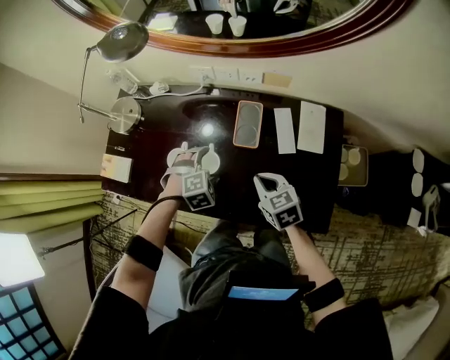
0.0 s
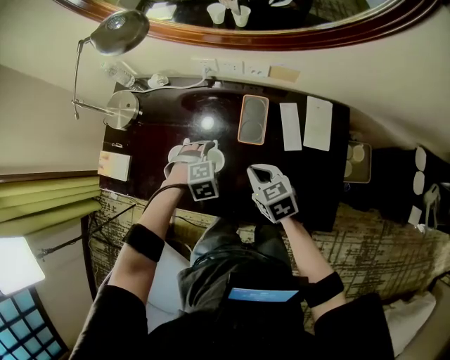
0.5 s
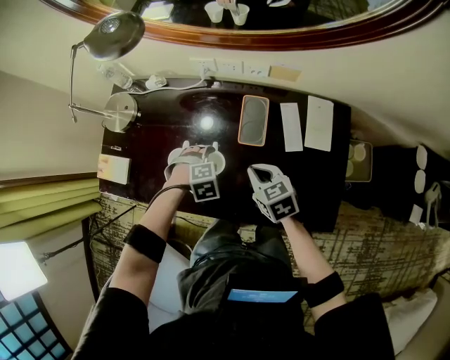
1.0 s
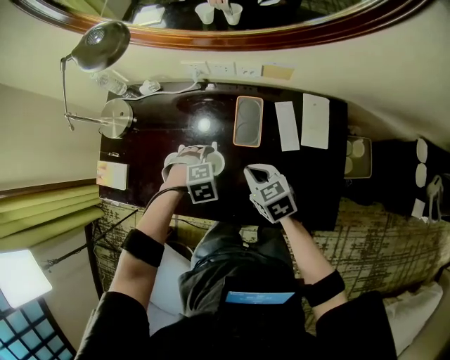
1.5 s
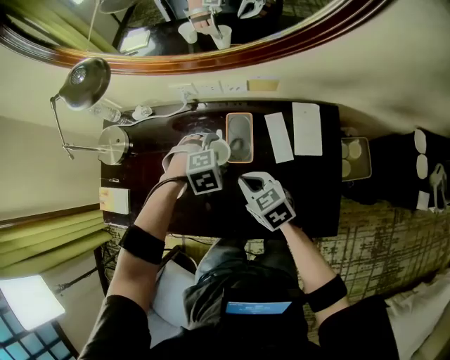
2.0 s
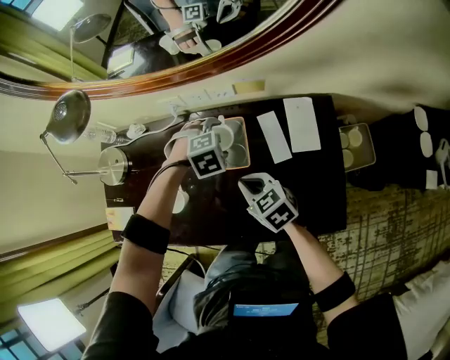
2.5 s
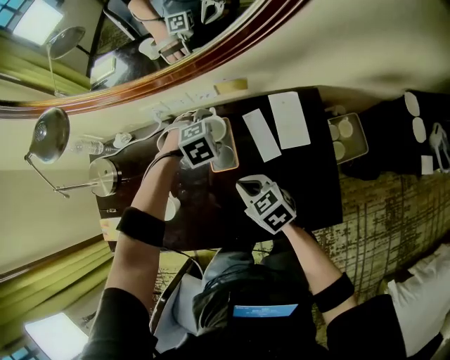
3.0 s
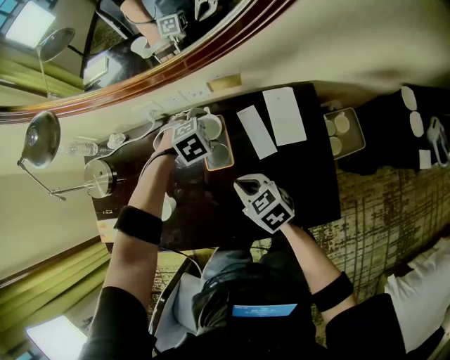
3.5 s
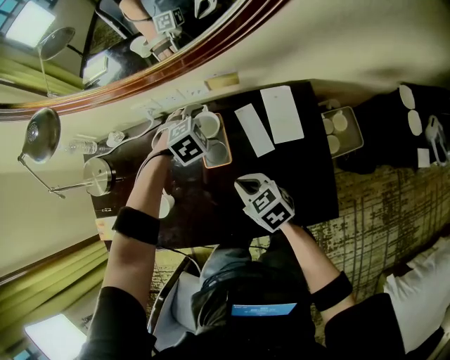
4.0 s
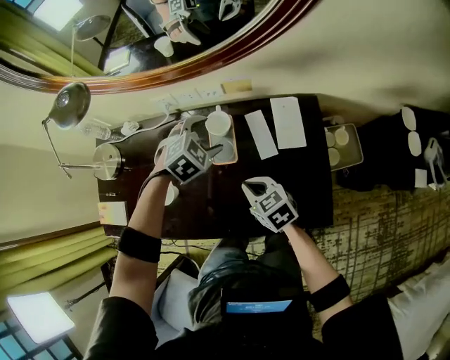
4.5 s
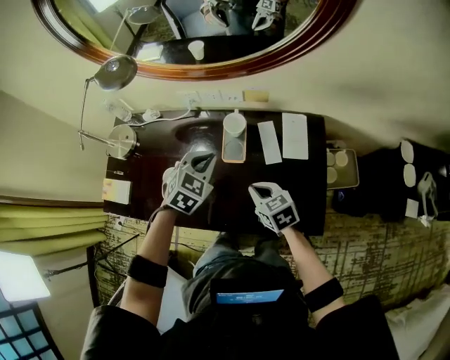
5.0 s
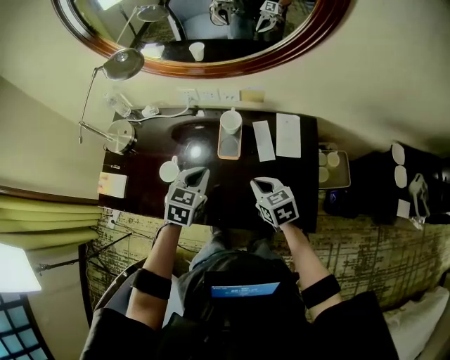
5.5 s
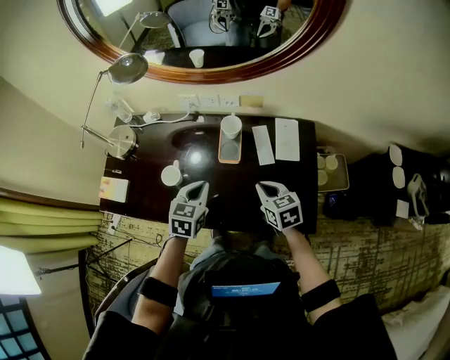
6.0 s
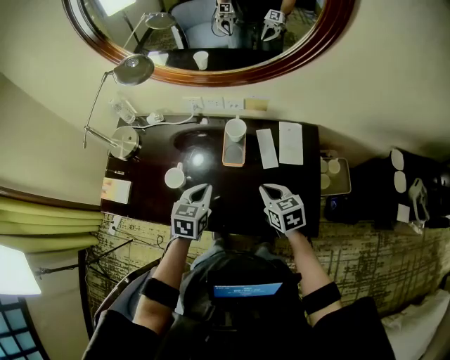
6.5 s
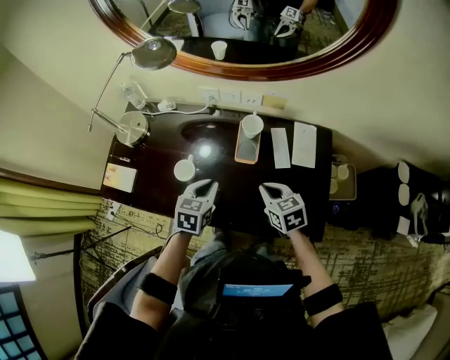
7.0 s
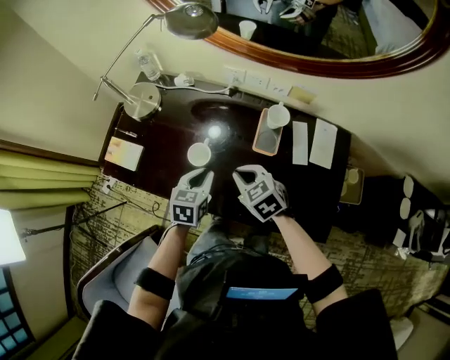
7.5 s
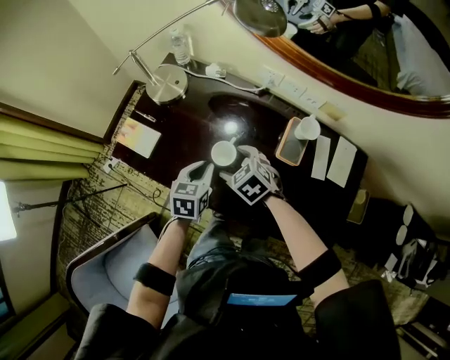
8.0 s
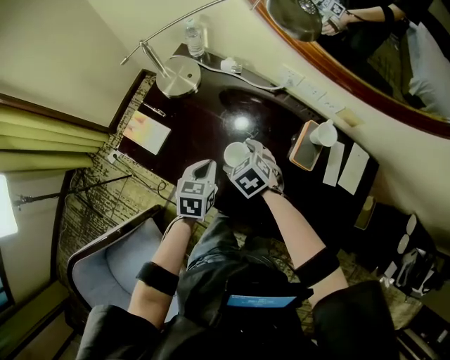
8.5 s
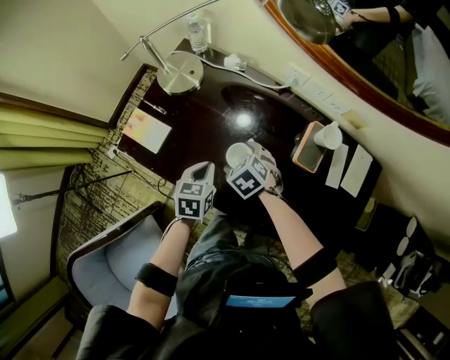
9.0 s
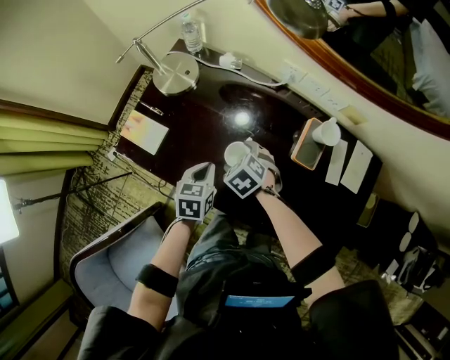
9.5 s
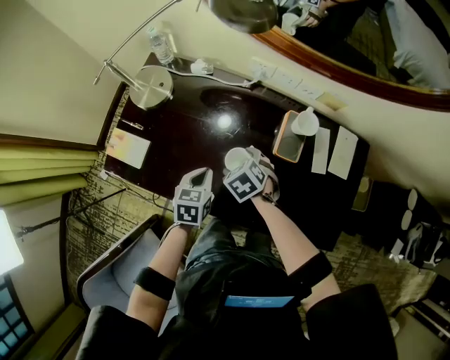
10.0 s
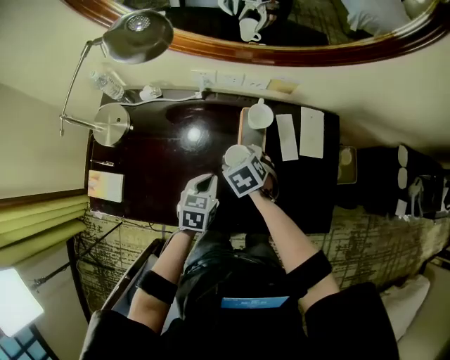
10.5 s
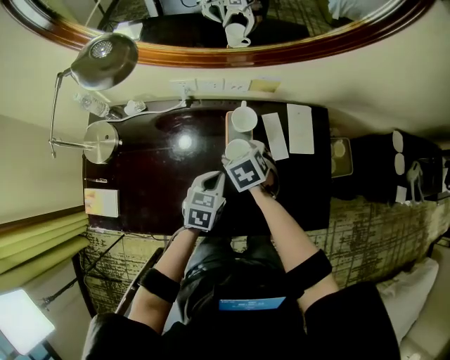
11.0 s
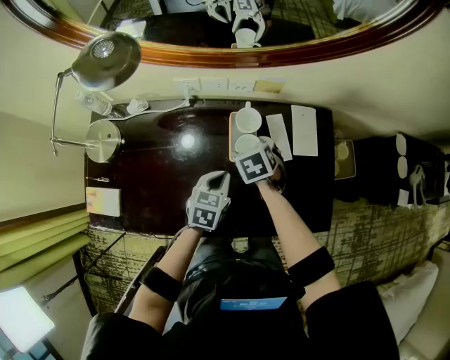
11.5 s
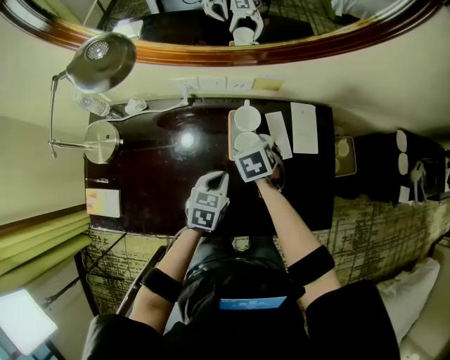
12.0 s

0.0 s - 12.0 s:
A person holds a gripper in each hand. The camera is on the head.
0.0 s - 2.0 s: The right gripper moves some 5 cm. Meanwhile the left gripper shifts by roughly 10 cm.
2.0 s - 4.0 s: The right gripper shifts by some 5 cm, while the left gripper shifts by roughly 15 cm.
4.0 s - 6.0 s: The left gripper heads backward, upward and to the left, covering roughly 30 cm, rolls counterclockwise, seen from behind, by approximately 50 degrees, and closes its fingers, while the right gripper goes roughly 10 cm upward and backward.
6.0 s - 8.0 s: The right gripper goes about 30 cm to the left, turns by roughly 50 degrees, and opens; the left gripper travels to the left and downward by some 25 cm, and turns by some 30 degrees.
8.0 s - 10.0 s: The right gripper is displaced downward by about 5 cm.
10.0 s - 12.0 s: The right gripper changes place by roughly 25 cm, and swivels approximately 40 degrees; the left gripper moves approximately 20 cm, and changes its angle by about 30 degrees.

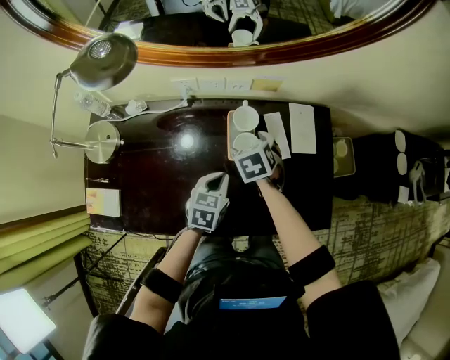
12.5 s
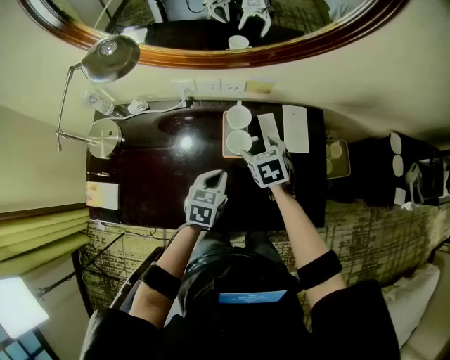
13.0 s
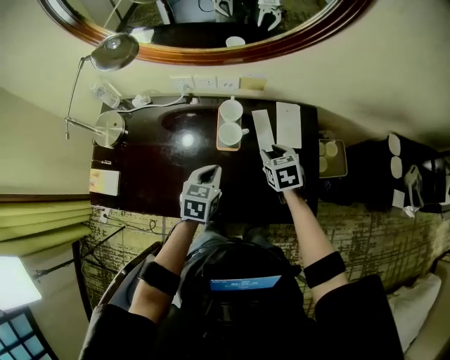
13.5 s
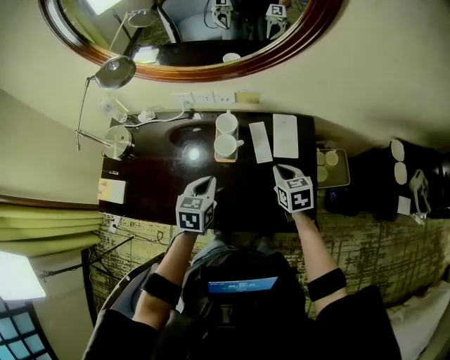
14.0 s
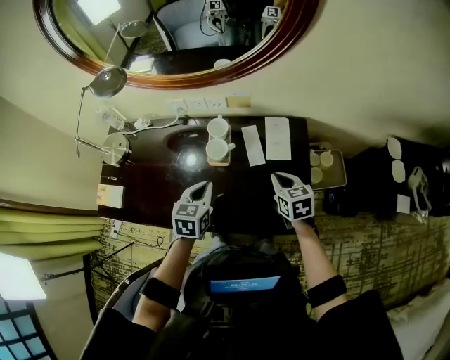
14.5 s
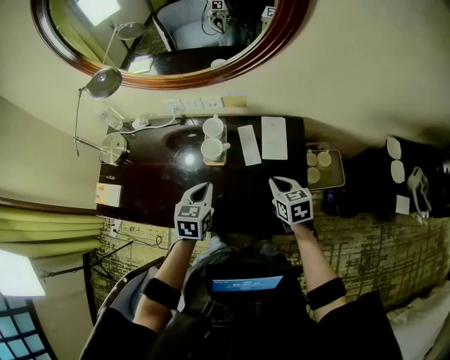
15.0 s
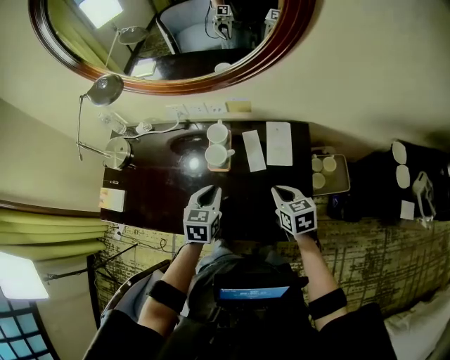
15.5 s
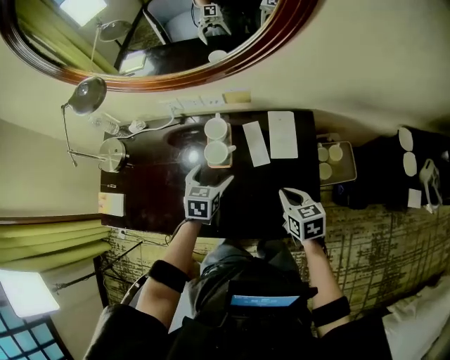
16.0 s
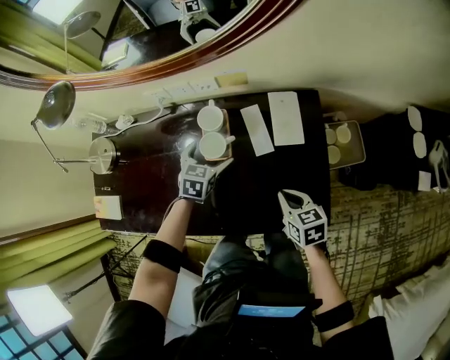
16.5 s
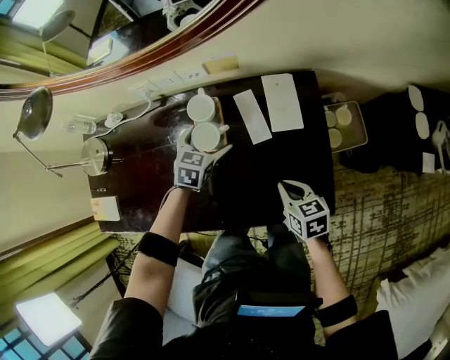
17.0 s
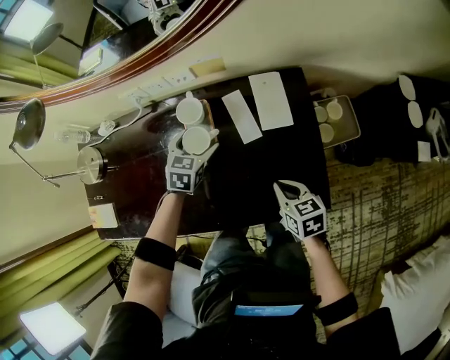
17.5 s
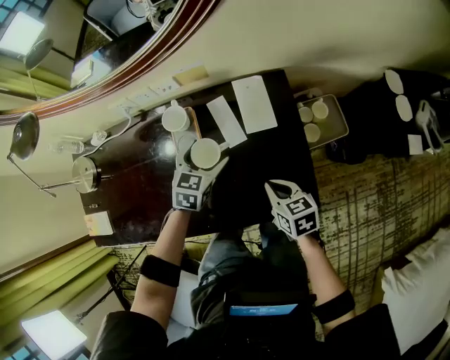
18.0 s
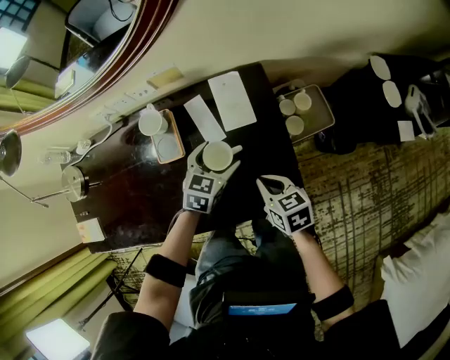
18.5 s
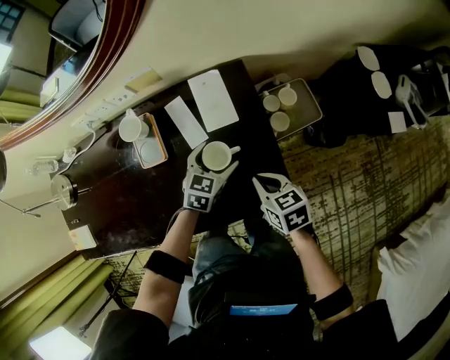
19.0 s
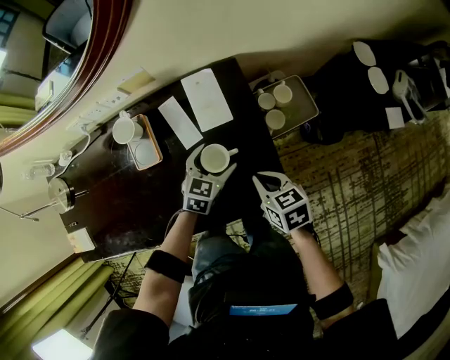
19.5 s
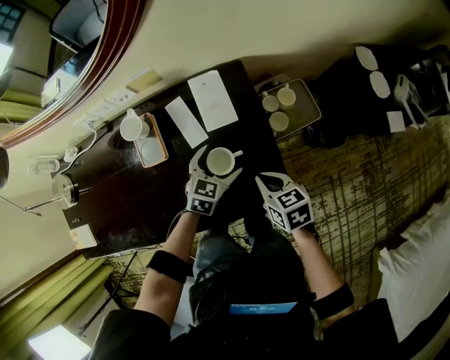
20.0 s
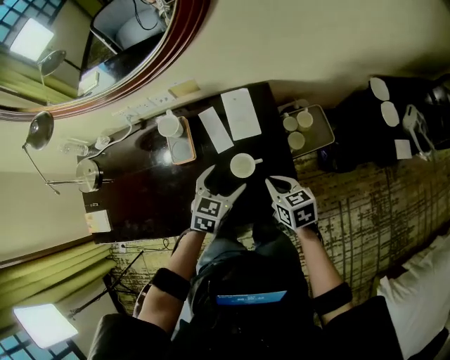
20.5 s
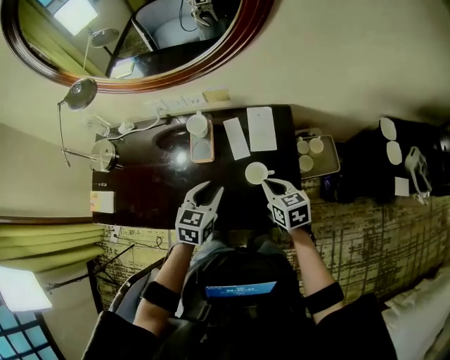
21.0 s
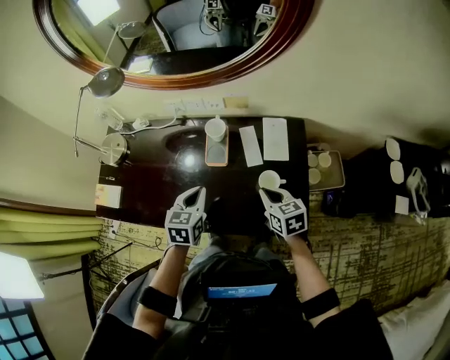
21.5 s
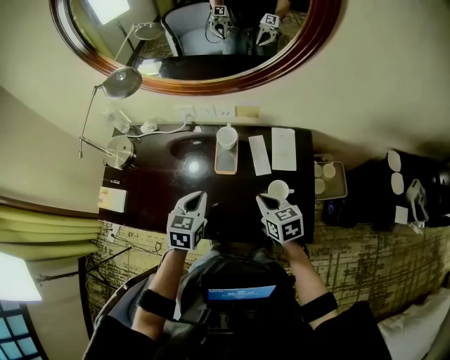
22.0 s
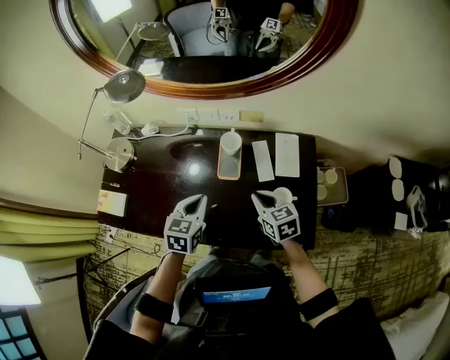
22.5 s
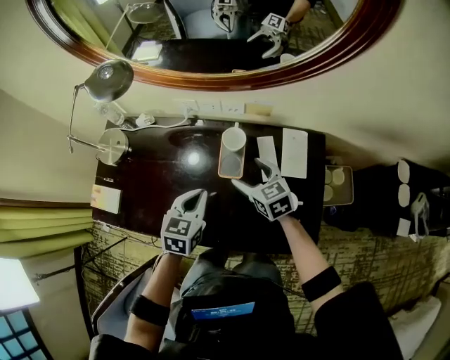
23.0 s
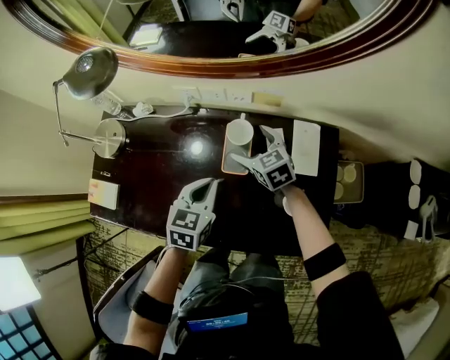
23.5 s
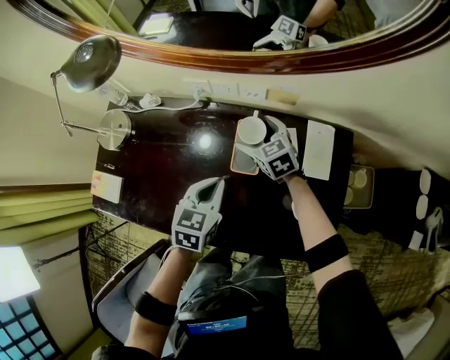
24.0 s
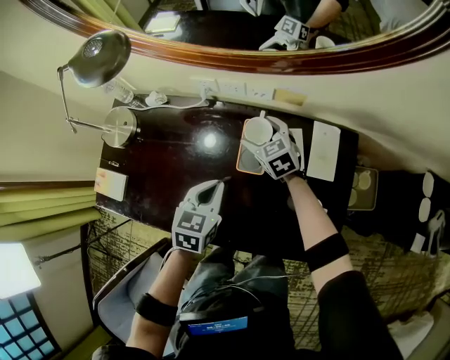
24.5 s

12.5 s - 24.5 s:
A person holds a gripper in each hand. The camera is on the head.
12.5 s - 14.5 s: The right gripper travels to the right and backward by approximately 25 cm, changes its angle by approximately 30 degrees, and closes its fingers; the left gripper heads upward, to the right and backward, covering about 15 cm.
14.5 s - 16.5 s: The right gripper moves downward, approximately 10 cm, while the left gripper travels forward and downward by roughly 20 cm, and opens its fingers.
16.5 s - 18.5 s: The right gripper travels to the right by some 5 cm. The left gripper is displaced to the right by approximately 20 cm.
18.5 s - 20.5 s: The left gripper is displaced backward by approximately 5 cm.
20.5 s - 22.5 s: Both grippers travel together to the left, roughly 20 cm. The left gripper turns by approximately 30 degrees, and closes.
22.5 s - 24.5 s: The left gripper travels downward and forward by some 10 cm. The right gripper heads forward and downward, covering about 25 cm, and opens its fingers.

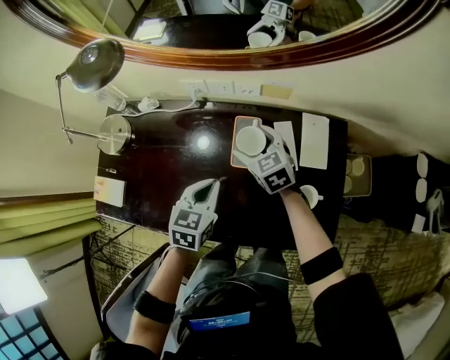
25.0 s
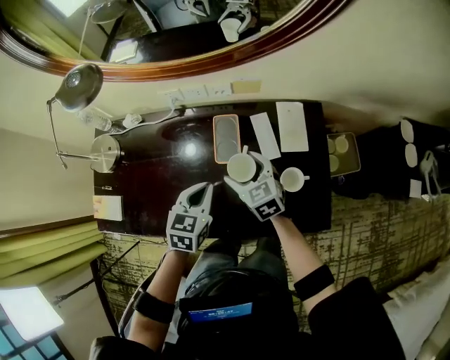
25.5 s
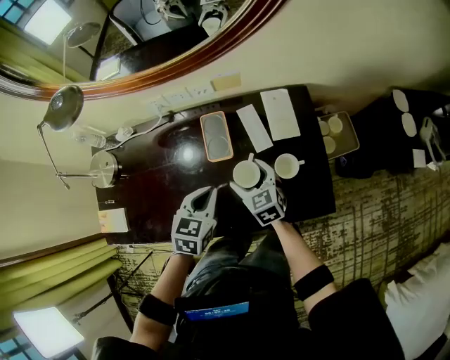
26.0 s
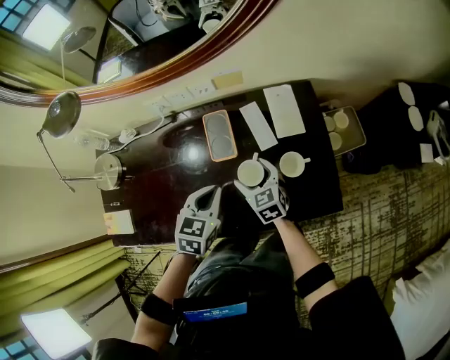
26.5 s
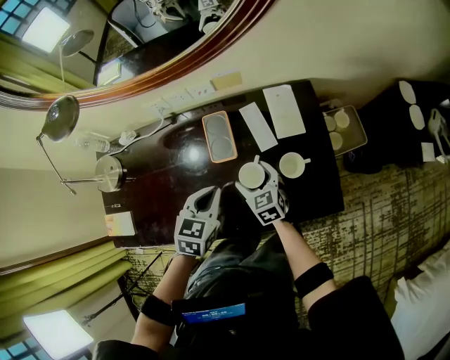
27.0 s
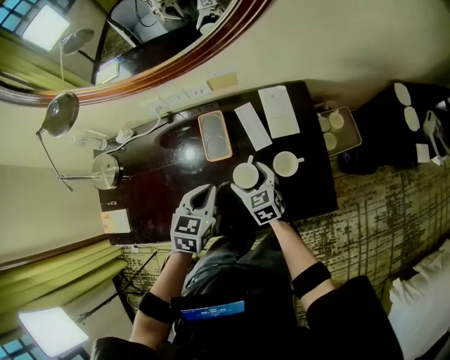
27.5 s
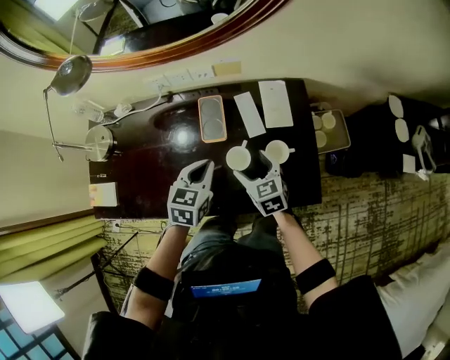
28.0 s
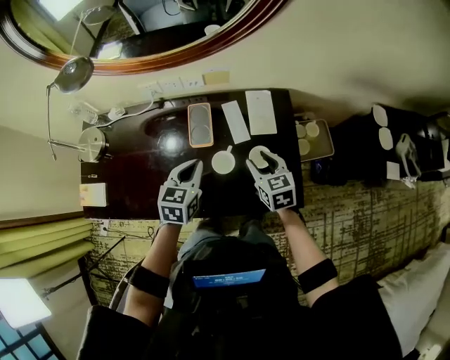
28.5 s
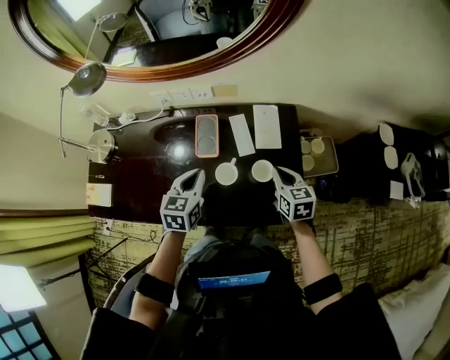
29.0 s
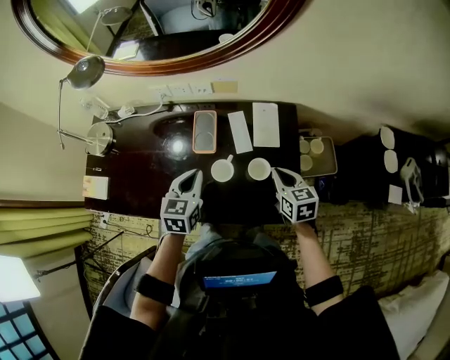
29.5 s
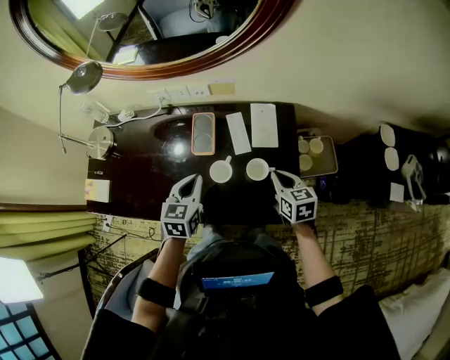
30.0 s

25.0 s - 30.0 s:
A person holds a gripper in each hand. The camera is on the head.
25.0 s - 27.5 s: The left gripper is displaced to the right by approximately 5 cm. The right gripper travels backward, to the right and downward by approximately 20 cm, and turns by some 20 degrees.
27.5 s - 30.0 s: The left gripper moves some 5 cm, and rotates approximately 20 degrees; the right gripper goes about 20 cm to the right and upward, and closes up.
